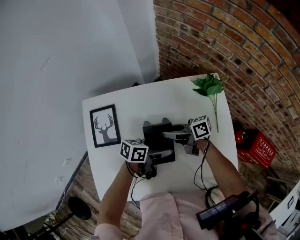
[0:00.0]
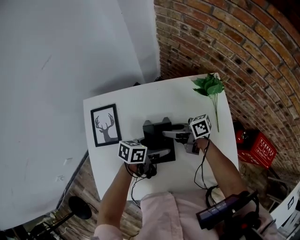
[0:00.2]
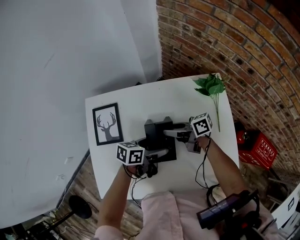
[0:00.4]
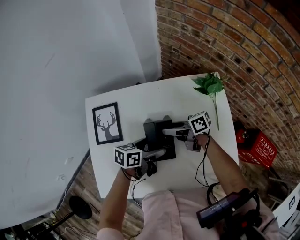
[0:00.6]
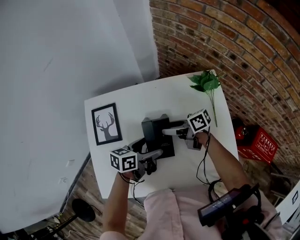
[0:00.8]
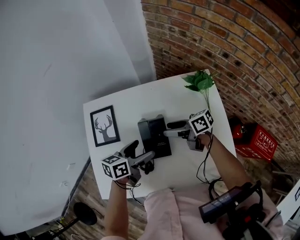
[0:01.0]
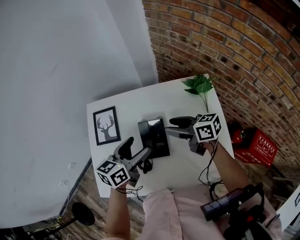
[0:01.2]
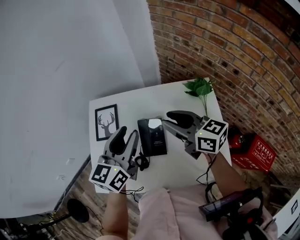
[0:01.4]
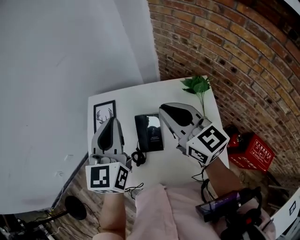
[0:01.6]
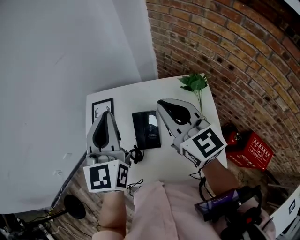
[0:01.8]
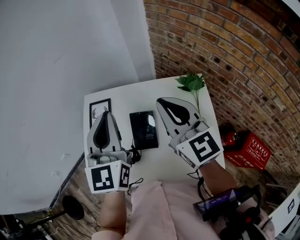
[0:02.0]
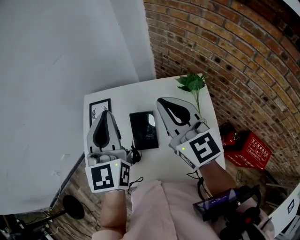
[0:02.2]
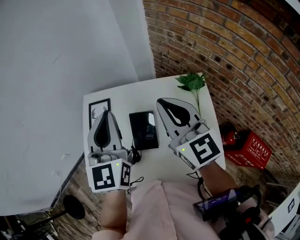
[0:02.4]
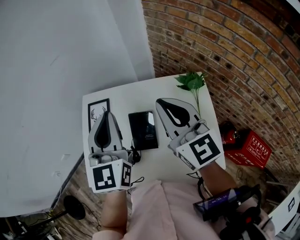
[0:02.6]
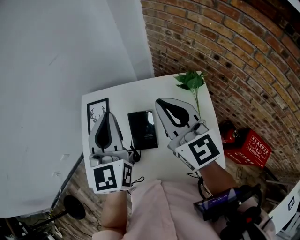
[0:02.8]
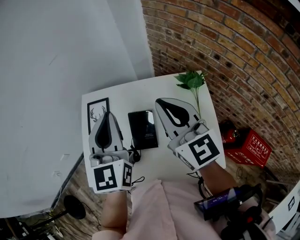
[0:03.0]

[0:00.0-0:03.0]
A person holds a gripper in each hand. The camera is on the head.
0:00.0 to 0:01.6: The two grippers go some 30 cm upward. The right gripper rotates around the line of its fingers by approximately 50 degrees, counterclockwise from behind, and closes; the left gripper turns by about 80 degrees, and closes.
0:01.6 to 0:03.0: The grippers make only small movements.

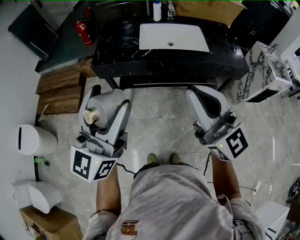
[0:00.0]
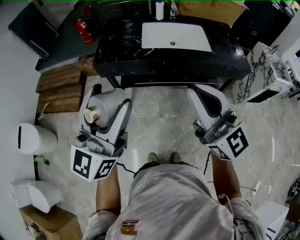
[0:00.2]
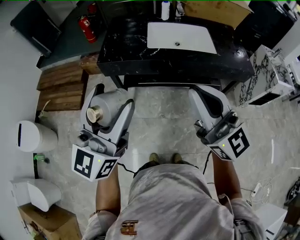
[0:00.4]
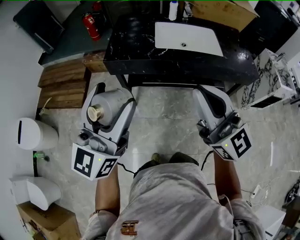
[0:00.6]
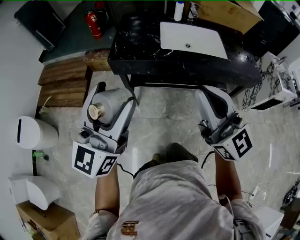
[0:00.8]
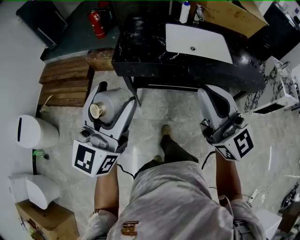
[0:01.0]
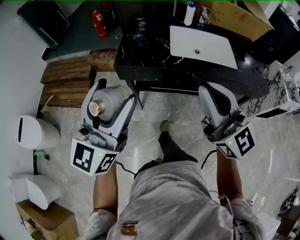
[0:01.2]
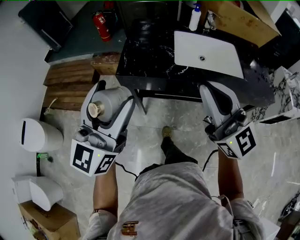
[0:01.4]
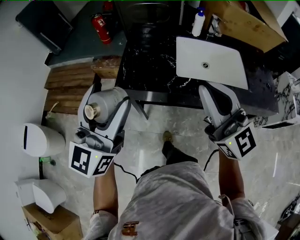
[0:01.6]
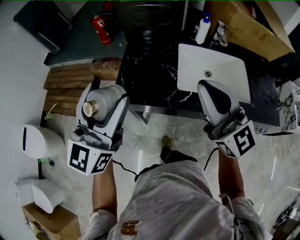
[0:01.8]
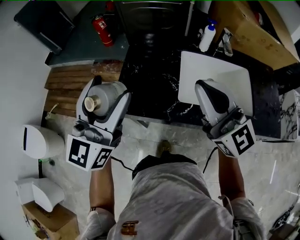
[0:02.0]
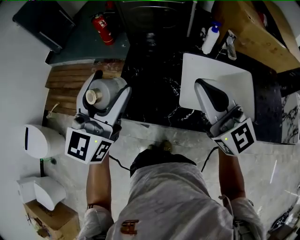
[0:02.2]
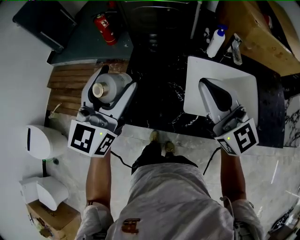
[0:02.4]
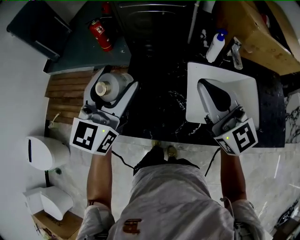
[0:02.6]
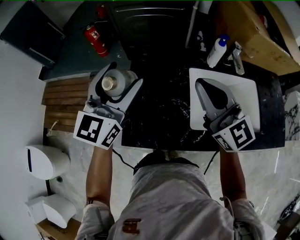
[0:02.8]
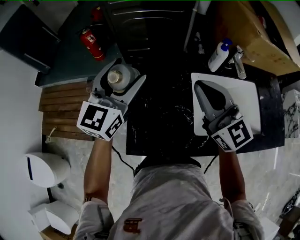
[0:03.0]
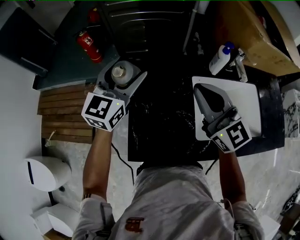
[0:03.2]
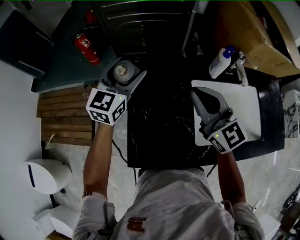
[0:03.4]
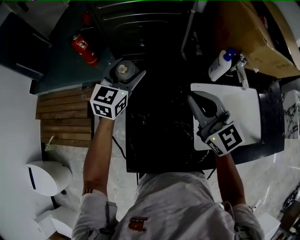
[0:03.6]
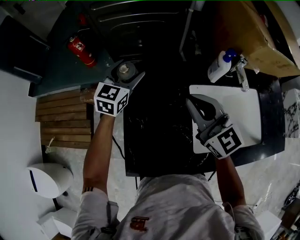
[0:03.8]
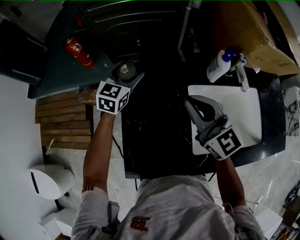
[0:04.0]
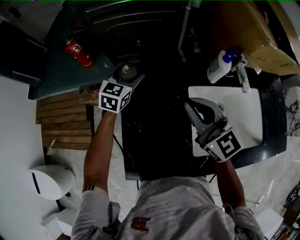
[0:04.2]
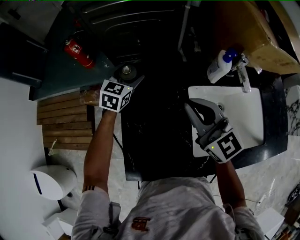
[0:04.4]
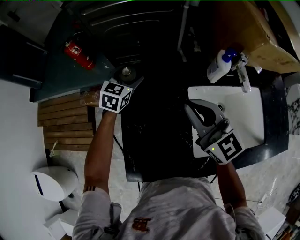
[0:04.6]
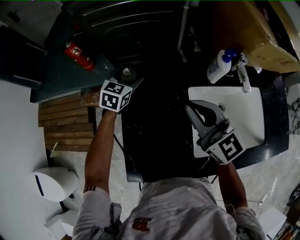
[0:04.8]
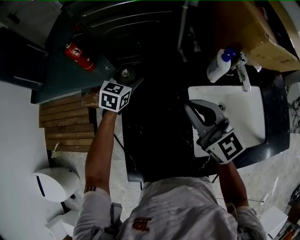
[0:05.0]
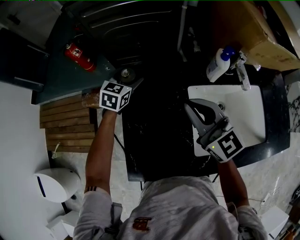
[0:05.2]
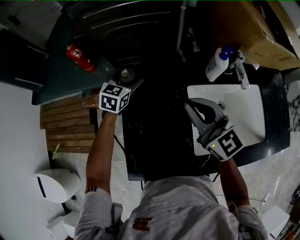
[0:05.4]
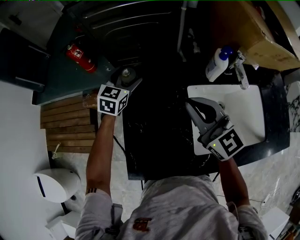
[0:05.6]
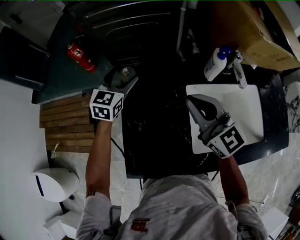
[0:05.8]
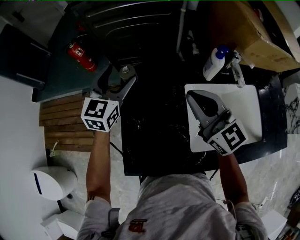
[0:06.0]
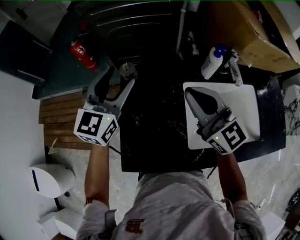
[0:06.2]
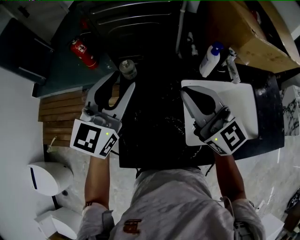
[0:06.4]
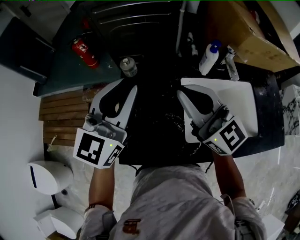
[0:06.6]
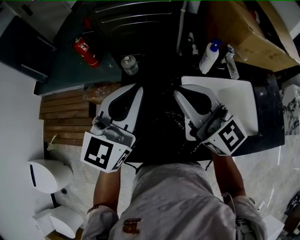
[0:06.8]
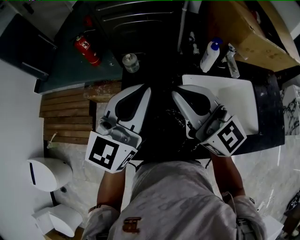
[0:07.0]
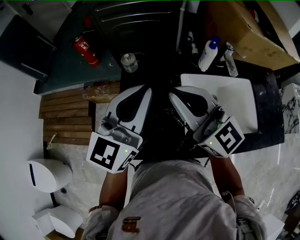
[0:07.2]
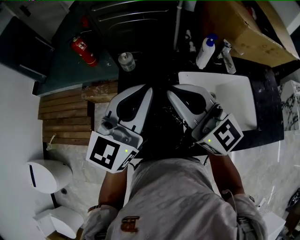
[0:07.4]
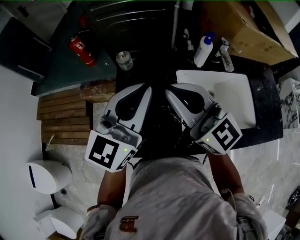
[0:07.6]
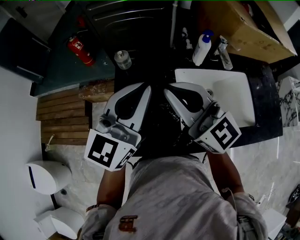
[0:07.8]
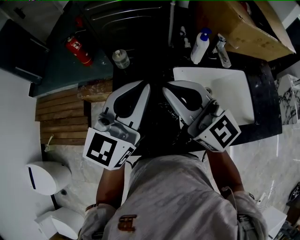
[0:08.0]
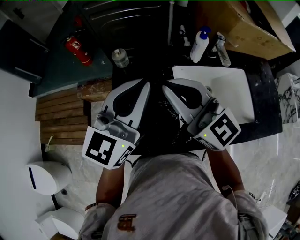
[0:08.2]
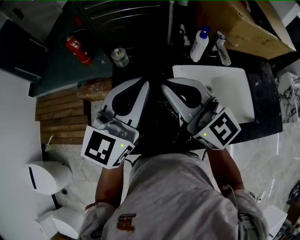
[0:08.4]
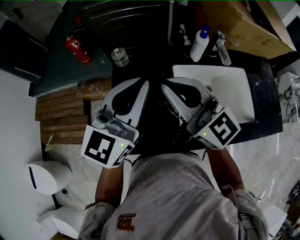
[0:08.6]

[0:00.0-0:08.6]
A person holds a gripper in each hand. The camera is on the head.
0:00.0 to 0:01.4: The grippers both shift forward and to the left by some 20 cm.
0:01.4 to 0:02.8: The grippers both shift forward by roughly 40 cm.
0:02.8 to 0:04.4: The right gripper moves forward and downward, some 15 cm. The left gripper travels forward and downward by approximately 35 cm, and angles its fingers downward, by approximately 30 degrees.
0:04.4 to 0:05.8: The left gripper heads upward, covering about 5 cm.
0:05.8 to 0:07.2: The right gripper travels backward and upward by roughly 10 cm. The left gripper travels backward and upward by some 30 cm, swivels some 30 degrees, and closes up.
0:07.2 to 0:08.6: The grippers move only a little.

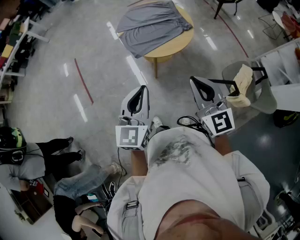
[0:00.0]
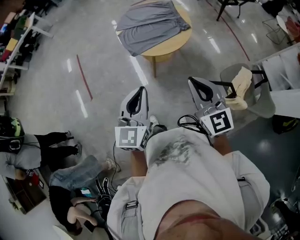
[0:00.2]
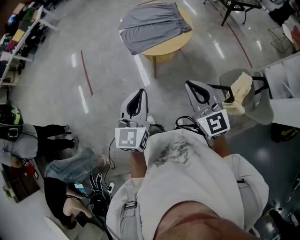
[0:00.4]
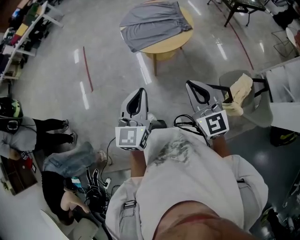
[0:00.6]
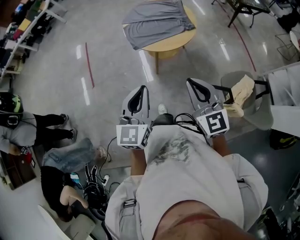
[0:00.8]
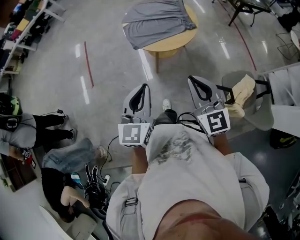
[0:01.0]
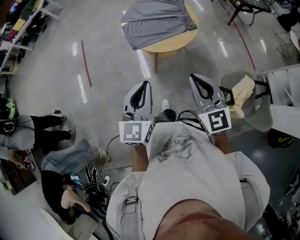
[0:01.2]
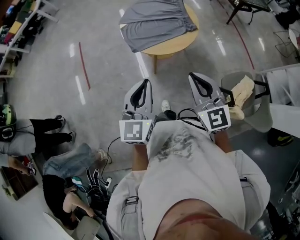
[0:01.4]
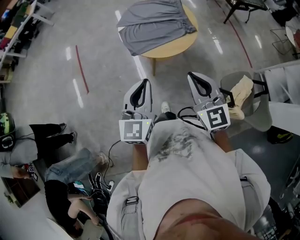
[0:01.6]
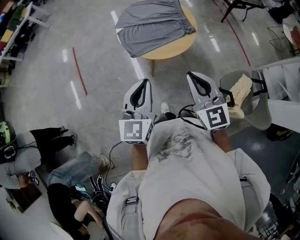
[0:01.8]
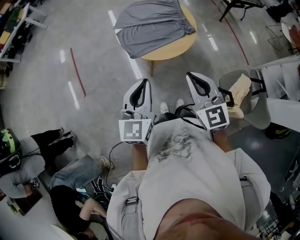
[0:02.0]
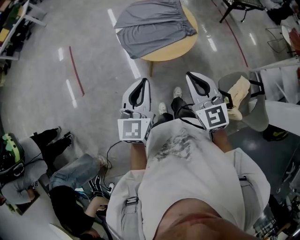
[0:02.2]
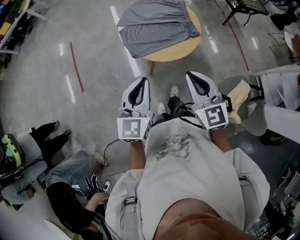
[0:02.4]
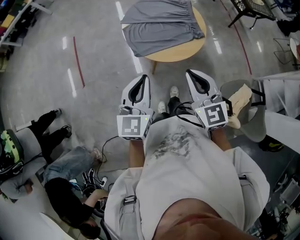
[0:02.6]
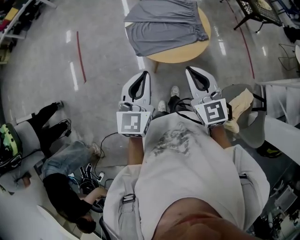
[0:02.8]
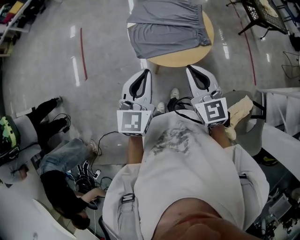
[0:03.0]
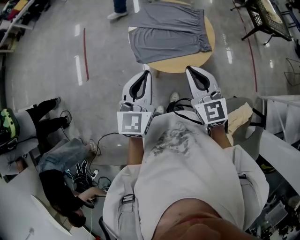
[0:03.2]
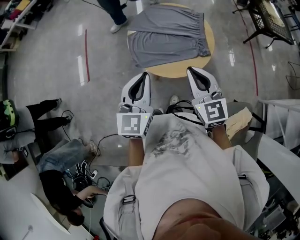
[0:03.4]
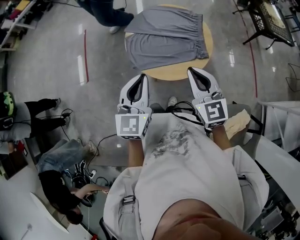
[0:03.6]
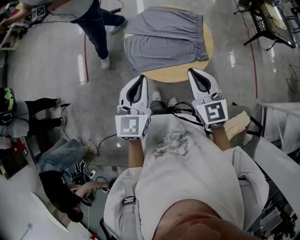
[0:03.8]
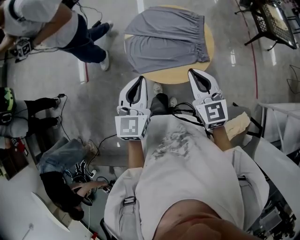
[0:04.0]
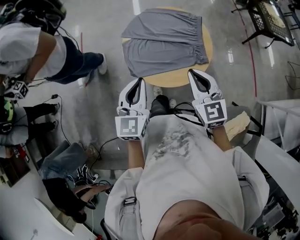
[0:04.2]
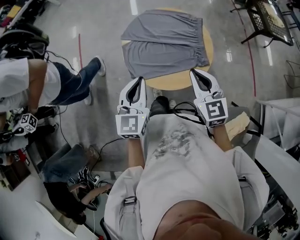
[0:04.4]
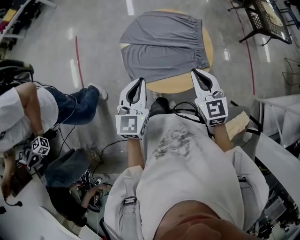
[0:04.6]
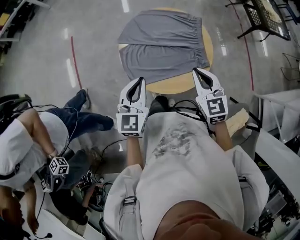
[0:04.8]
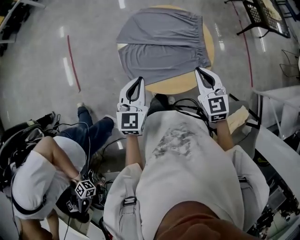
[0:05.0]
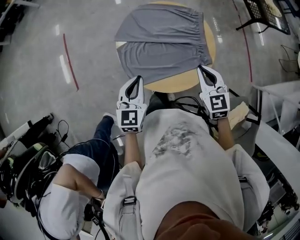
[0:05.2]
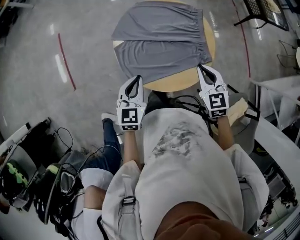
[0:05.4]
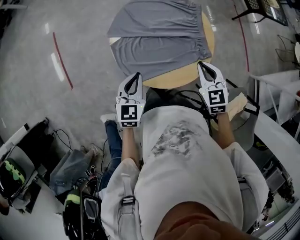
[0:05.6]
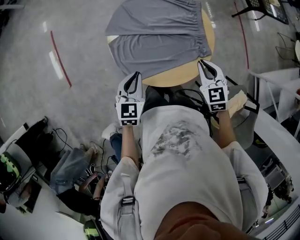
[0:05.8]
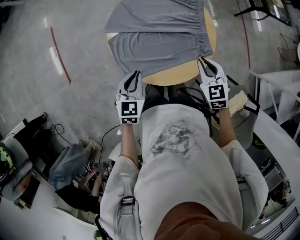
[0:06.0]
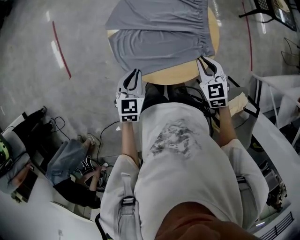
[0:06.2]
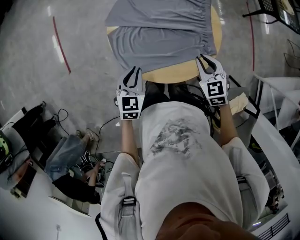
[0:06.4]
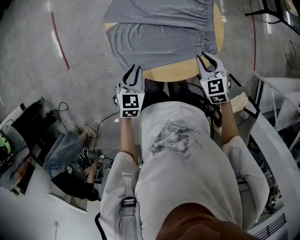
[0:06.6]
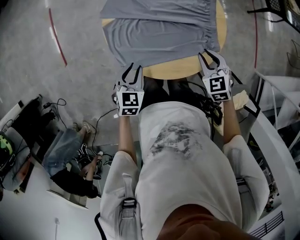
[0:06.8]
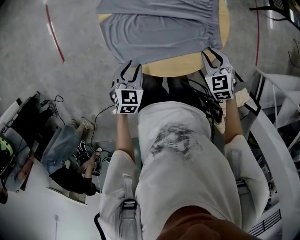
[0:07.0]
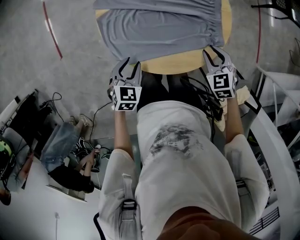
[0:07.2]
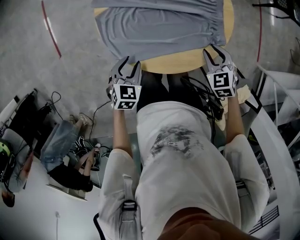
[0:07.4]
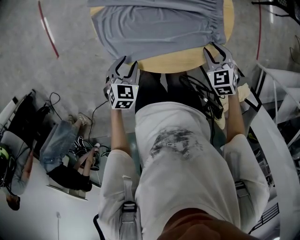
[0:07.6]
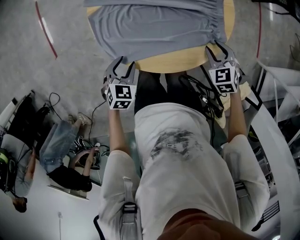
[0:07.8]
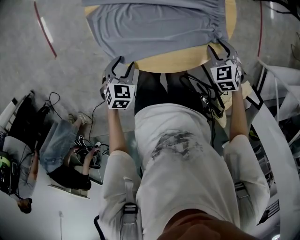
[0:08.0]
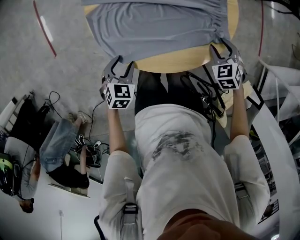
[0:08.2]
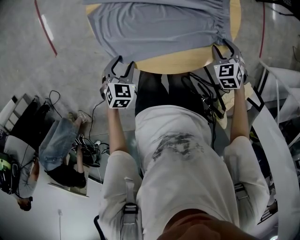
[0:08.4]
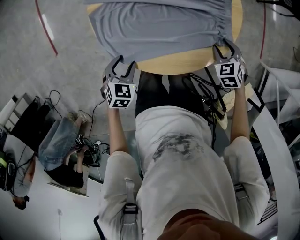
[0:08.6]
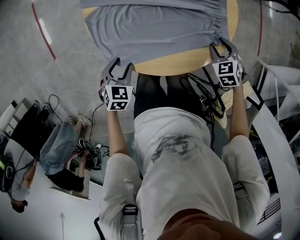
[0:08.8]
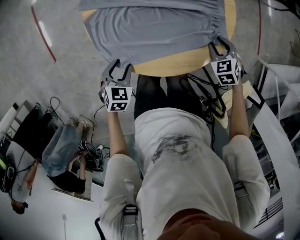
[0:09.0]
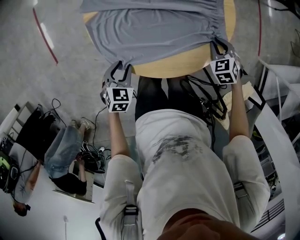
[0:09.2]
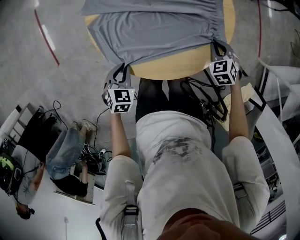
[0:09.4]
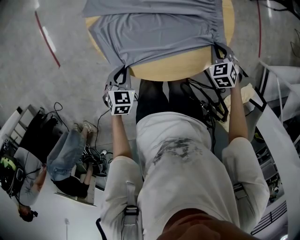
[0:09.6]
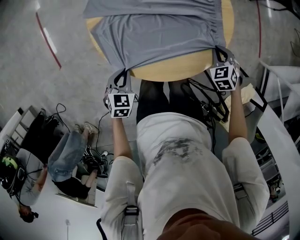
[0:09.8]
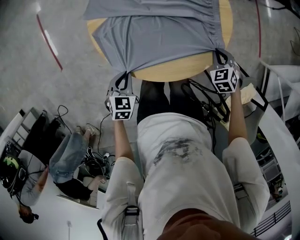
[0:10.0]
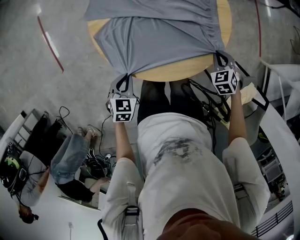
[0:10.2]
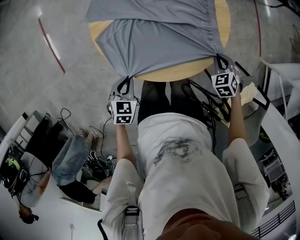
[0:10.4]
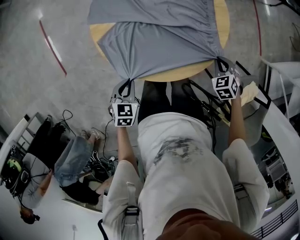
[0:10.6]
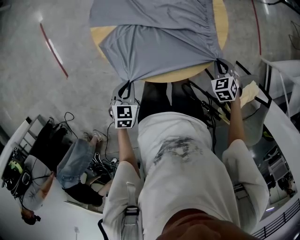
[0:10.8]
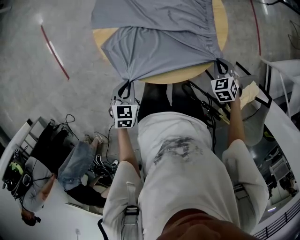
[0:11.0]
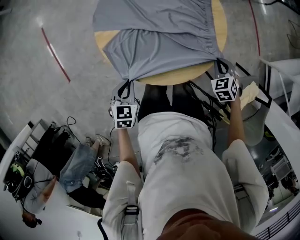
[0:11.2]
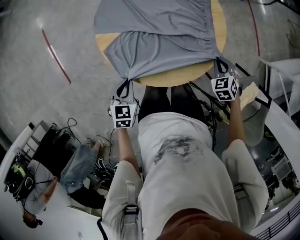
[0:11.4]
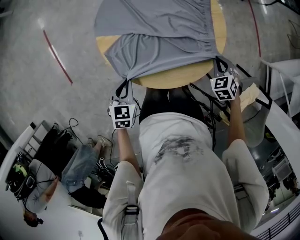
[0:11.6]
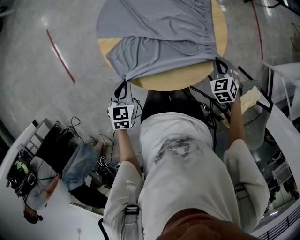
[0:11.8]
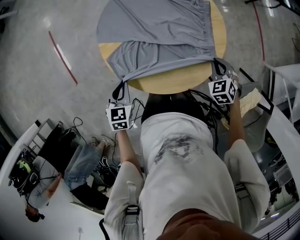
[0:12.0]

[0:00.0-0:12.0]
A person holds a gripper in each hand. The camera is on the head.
0:00.0 to 0:01.6: The right gripper shifts approximately 10 cm forward and to the right, while the left gripper goes some 5 cm to the right.
0:01.6 to 0:03.0: The two grippers go roughly 15 cm forward.
0:03.0 to 0:04.4: The left gripper travels forward by some 15 cm, while the right gripper moves forward and to the right, approximately 20 cm.
0:04.4 to 0:06.0: Both grippers move downward and forward, some 20 cm. The right gripper turns by some 20 degrees. The left gripper rotates roughly 20 degrees.
0:06.0 to 0:07.6: Both grippers travel together downward, roughly 15 cm. The right gripper opens its fingers. The left gripper changes its angle by roughly 20 degrees, and opens.
0:07.6 to 0:09.0: The right gripper moves downward, some 5 cm.
0:09.0 to 0:10.4: The left gripper closes its fingers. The right gripper changes place by approximately 5 cm, and closes up.
0:10.4 to 0:12.0: The right gripper heads upward, covering some 5 cm; the left gripper is displaced upward, forward and to the left by some 10 cm.
